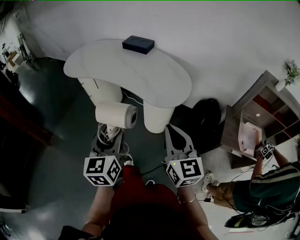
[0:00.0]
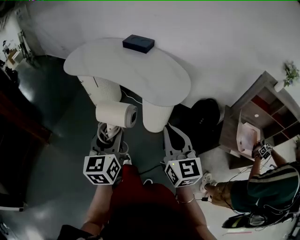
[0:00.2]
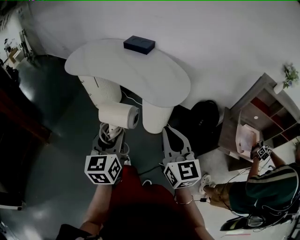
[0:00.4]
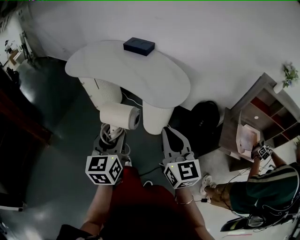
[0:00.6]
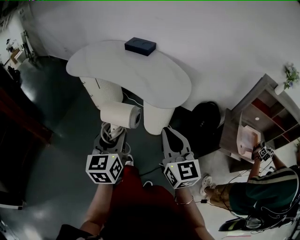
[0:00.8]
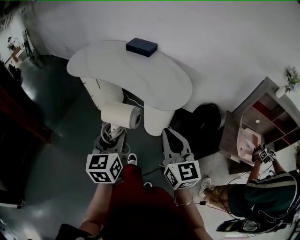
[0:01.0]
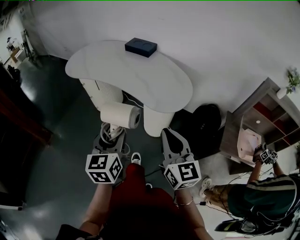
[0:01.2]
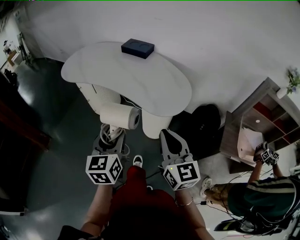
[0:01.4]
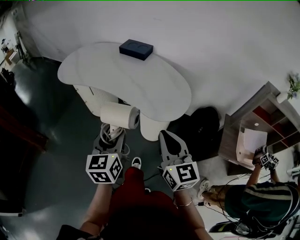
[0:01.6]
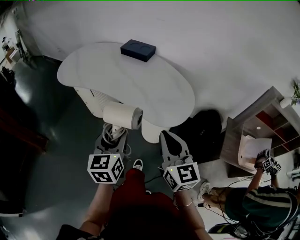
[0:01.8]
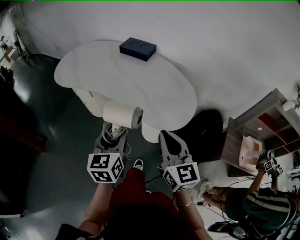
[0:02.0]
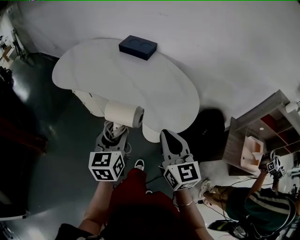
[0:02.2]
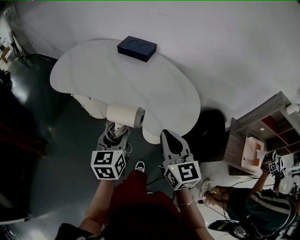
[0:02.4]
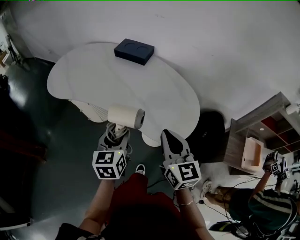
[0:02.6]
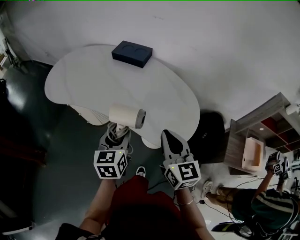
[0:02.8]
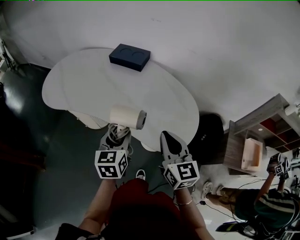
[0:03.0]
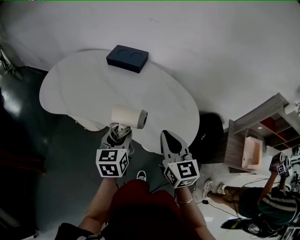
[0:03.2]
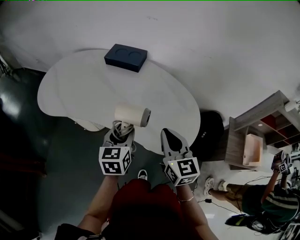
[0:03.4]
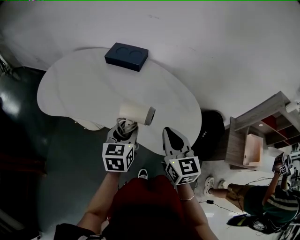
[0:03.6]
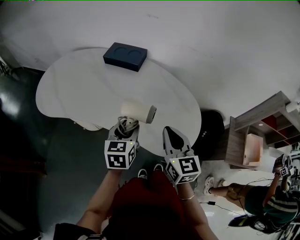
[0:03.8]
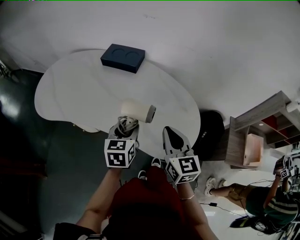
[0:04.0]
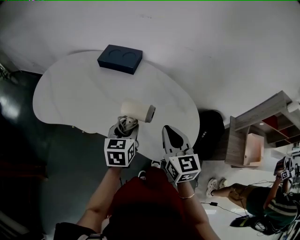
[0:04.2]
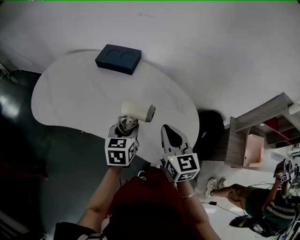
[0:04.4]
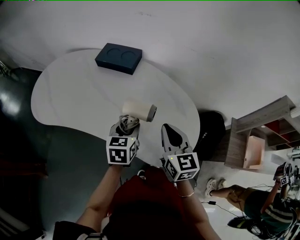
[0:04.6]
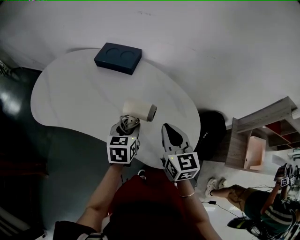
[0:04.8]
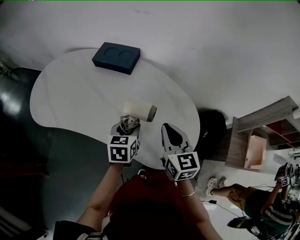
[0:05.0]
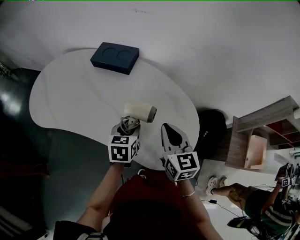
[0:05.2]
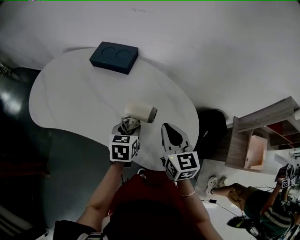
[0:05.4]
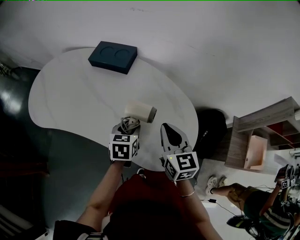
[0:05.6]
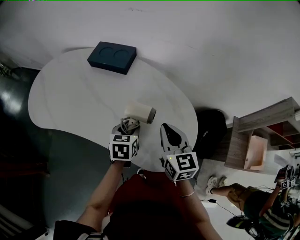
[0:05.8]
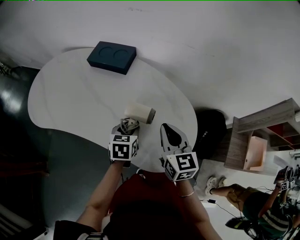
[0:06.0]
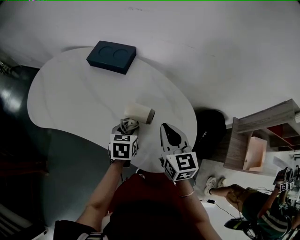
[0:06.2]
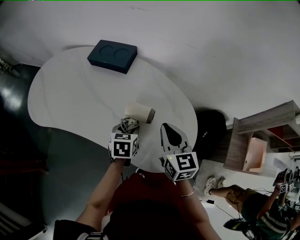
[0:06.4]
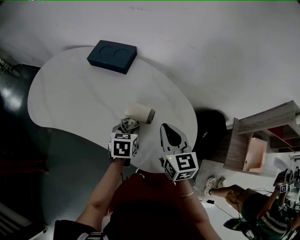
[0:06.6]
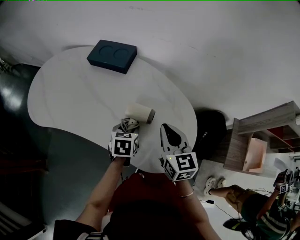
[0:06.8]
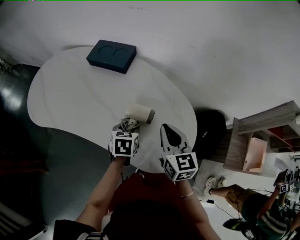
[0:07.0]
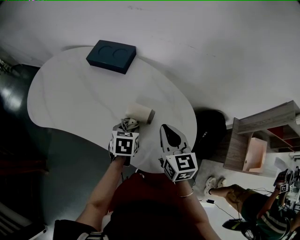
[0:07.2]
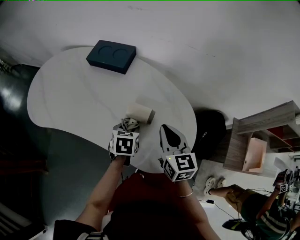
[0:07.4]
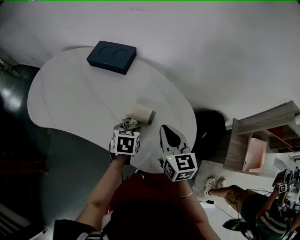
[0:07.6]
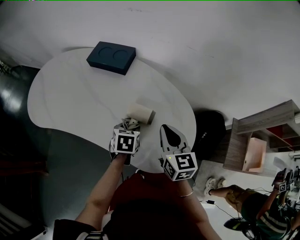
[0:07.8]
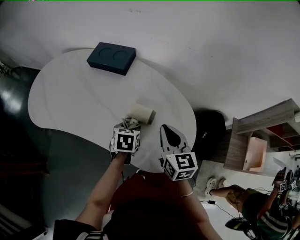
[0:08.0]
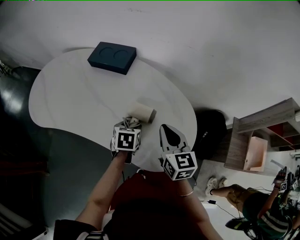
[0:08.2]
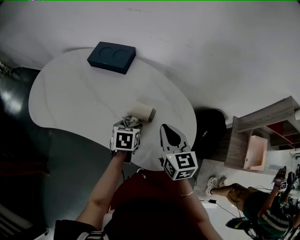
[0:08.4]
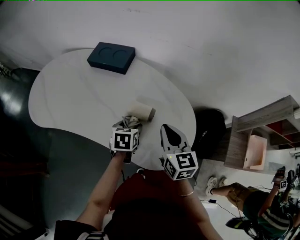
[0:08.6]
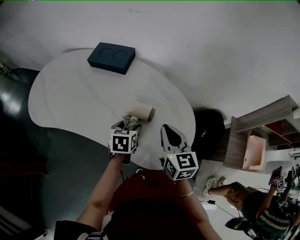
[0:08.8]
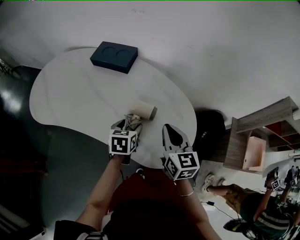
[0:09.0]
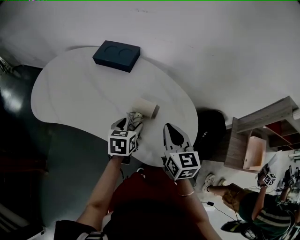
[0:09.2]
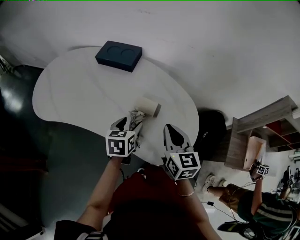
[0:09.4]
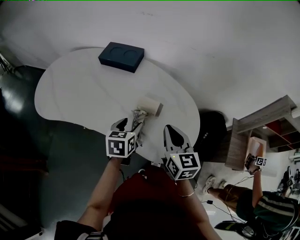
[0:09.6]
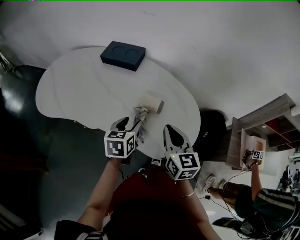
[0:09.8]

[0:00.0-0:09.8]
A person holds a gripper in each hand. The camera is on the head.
0:00.0 to 0:01.4: The left gripper is displaced forward by roughly 5 cm.
0:01.4 to 0:02.8: The grippers both shift forward by approximately 20 cm.
0:02.8 to 0:04.2: The grippers both shift forward by approximately 10 cm.
0:04.2 to 0:05.6: The left gripper shifts approximately 10 cm downward and forward; the right gripper heads forward, covering about 5 cm.
0:05.6 to 0:07.0: The grippers make only small movements.
0:07.0 to 0:08.4: Both grippers stay about where they are.
0:08.4 to 0:09.8: The left gripper heads upward and backward, covering roughly 10 cm. Meanwhile the right gripper goes roughly 5 cm backward.

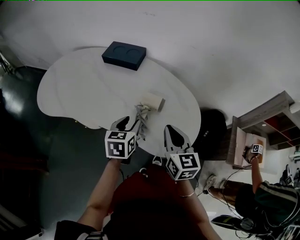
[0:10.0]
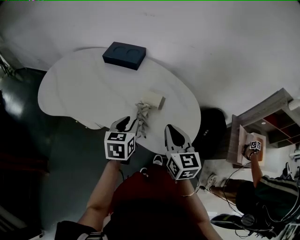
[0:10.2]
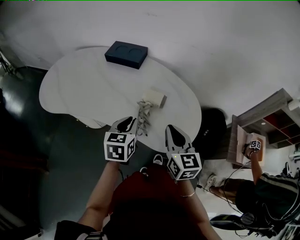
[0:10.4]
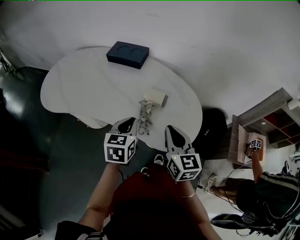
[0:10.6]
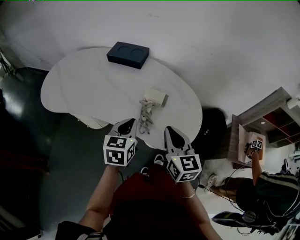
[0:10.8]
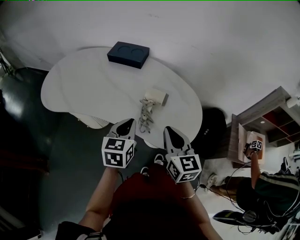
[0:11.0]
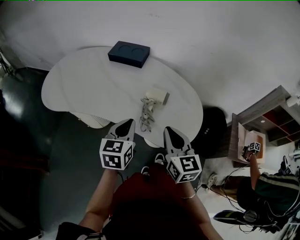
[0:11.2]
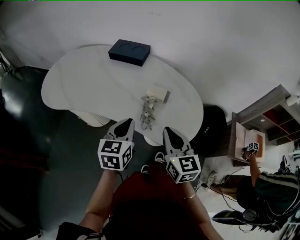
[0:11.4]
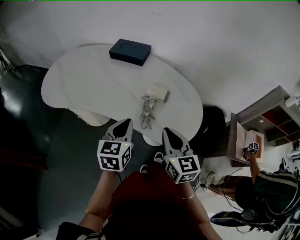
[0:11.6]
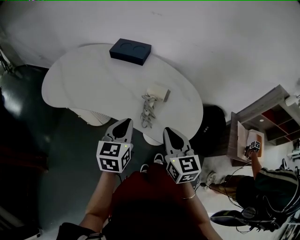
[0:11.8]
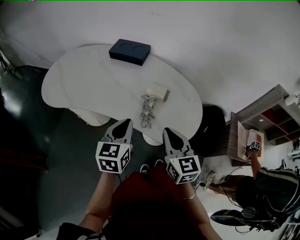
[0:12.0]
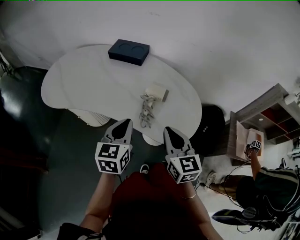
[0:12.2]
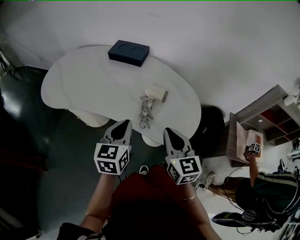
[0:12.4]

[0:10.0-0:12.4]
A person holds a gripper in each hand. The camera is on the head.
0:10.0 to 0:11.2: The left gripper shifts about 10 cm backward and upward, and closes. Meanwhile the right gripper is displaced backward by about 5 cm.
0:11.2 to 0:12.4: There are only small adjustments of the grippers.

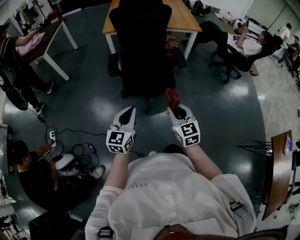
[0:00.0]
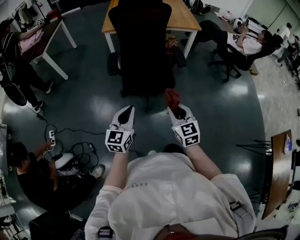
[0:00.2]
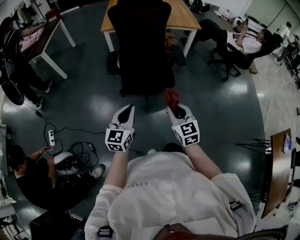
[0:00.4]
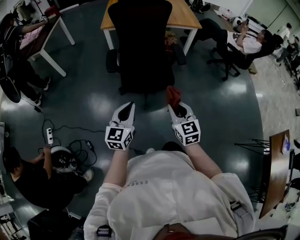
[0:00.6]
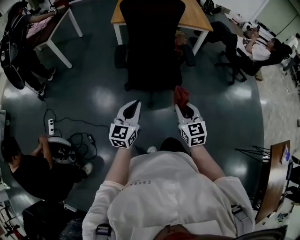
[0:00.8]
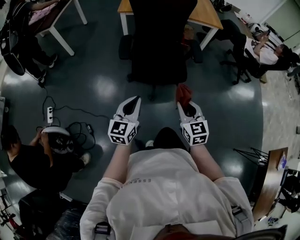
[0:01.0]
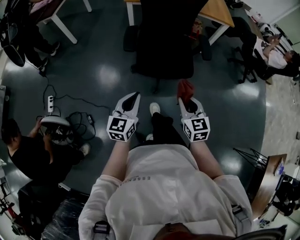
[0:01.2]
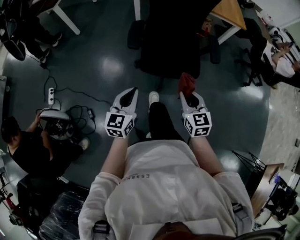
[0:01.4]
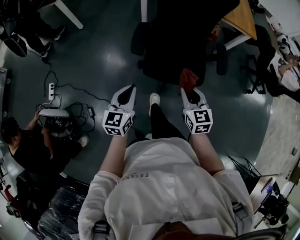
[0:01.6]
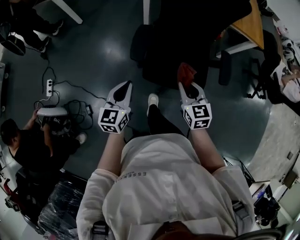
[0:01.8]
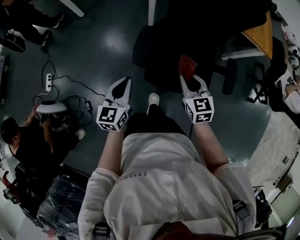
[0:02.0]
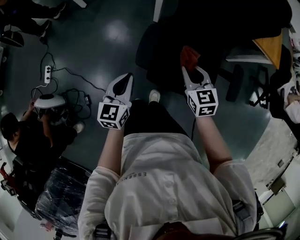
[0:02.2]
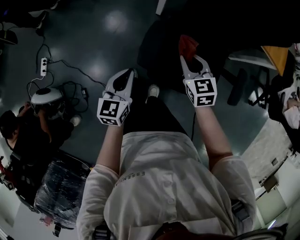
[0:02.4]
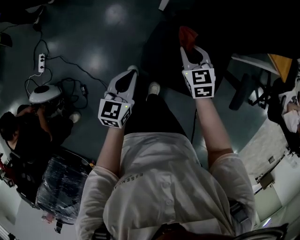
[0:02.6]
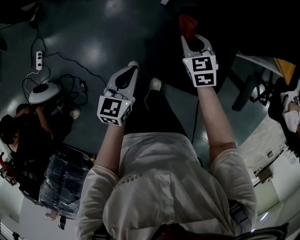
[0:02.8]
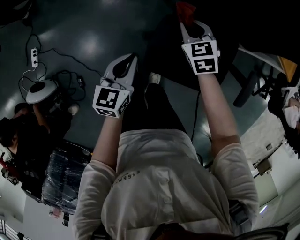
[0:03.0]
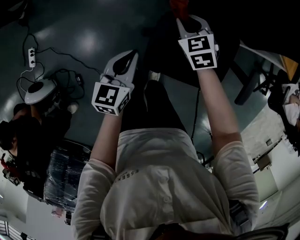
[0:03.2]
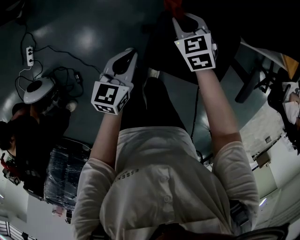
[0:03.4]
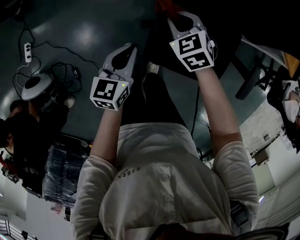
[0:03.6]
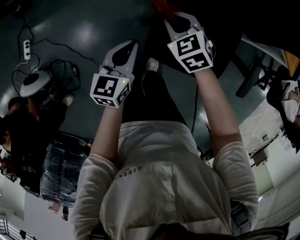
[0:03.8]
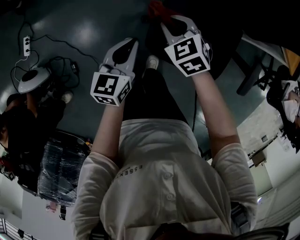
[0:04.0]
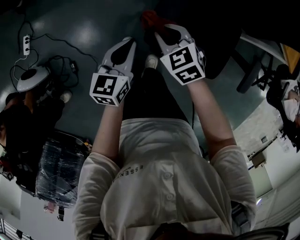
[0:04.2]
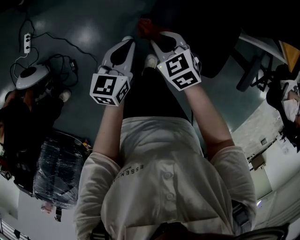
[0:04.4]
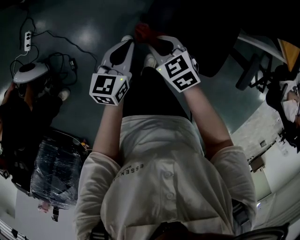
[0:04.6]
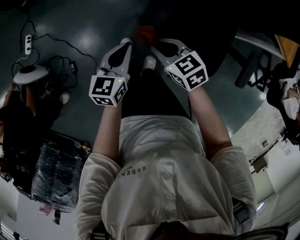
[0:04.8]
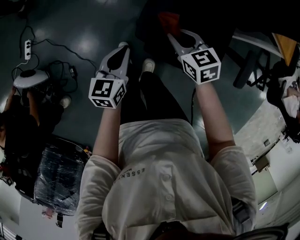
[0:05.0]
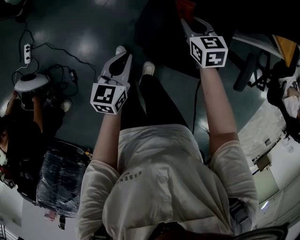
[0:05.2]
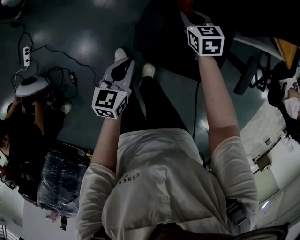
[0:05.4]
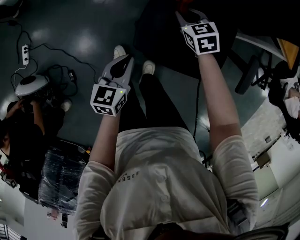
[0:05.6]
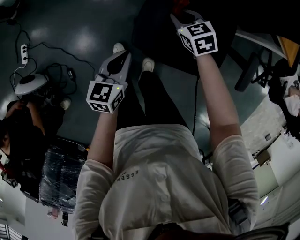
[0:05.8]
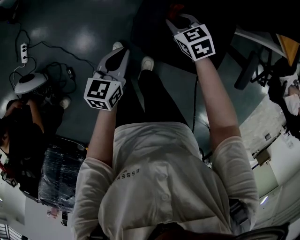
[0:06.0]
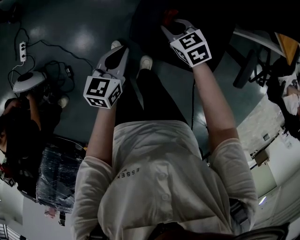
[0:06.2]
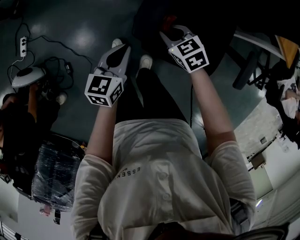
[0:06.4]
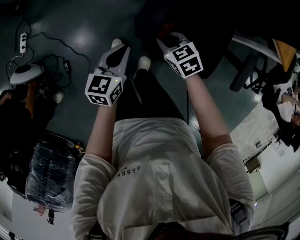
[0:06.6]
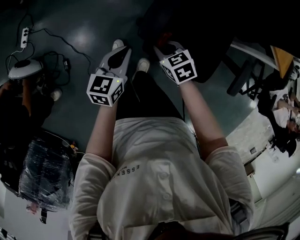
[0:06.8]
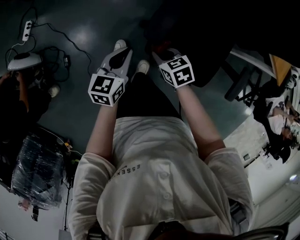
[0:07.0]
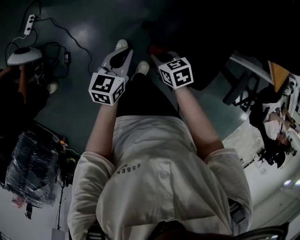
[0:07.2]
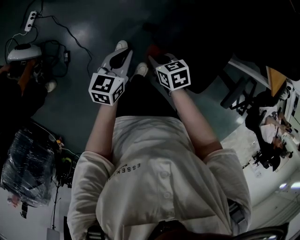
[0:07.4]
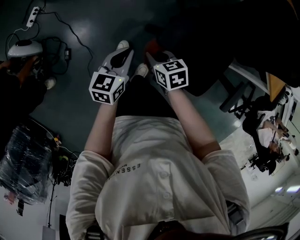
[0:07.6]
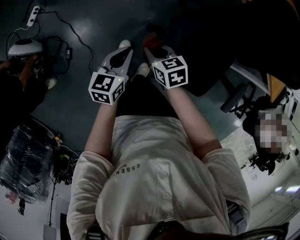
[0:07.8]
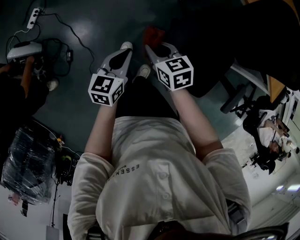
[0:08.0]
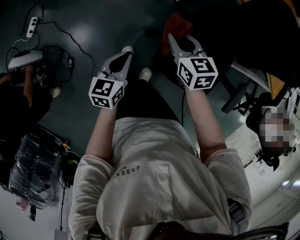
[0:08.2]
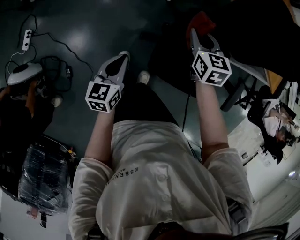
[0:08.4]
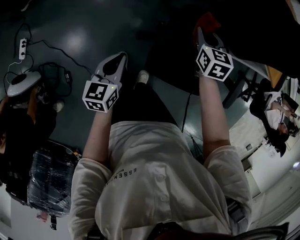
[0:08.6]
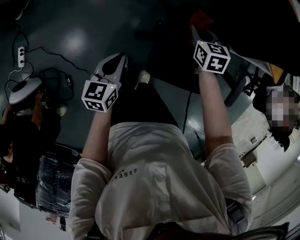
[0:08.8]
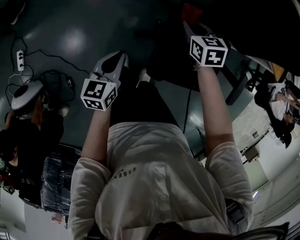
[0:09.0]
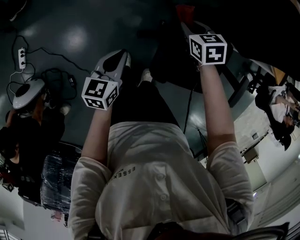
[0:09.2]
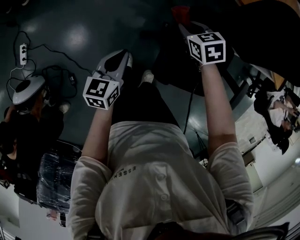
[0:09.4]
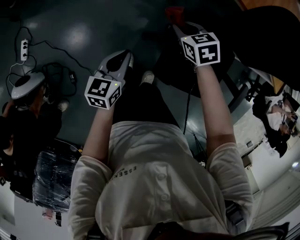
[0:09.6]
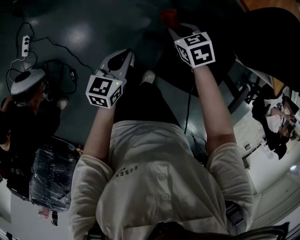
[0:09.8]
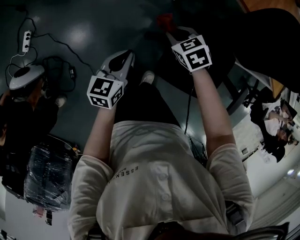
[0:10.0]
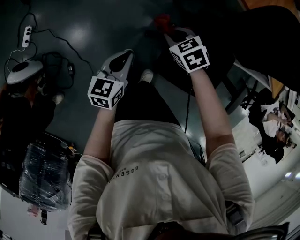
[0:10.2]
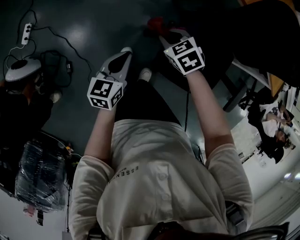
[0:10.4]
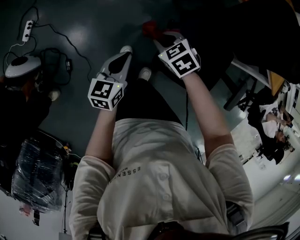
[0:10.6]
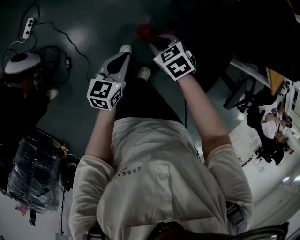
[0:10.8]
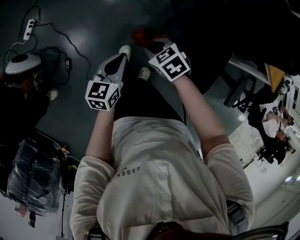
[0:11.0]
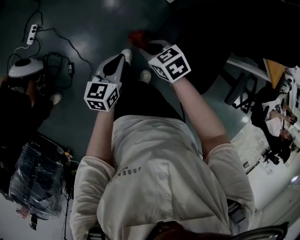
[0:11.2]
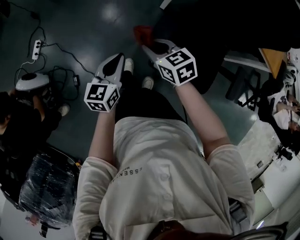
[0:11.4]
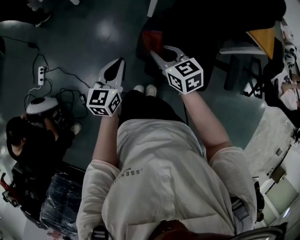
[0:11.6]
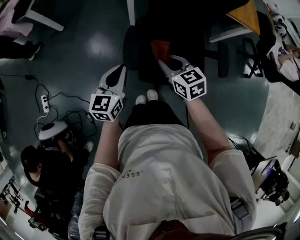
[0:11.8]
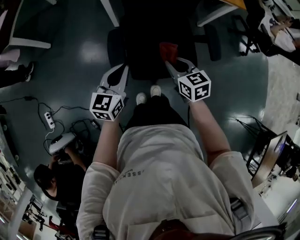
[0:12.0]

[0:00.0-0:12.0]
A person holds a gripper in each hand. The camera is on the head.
0:00.0 to 0:01.6: The right gripper moves forward, some 20 cm; the left gripper travels forward, to the left and downward by approximately 20 cm.
0:01.6 to 0:03.0: The right gripper shifts about 40 cm forward, and swivels approximately 30 degrees; the left gripper heads forward and downward, covering some 30 cm.
0:03.0 to 0:04.4: The right gripper moves backward and to the left, roughly 20 cm, and swivels some 20 degrees, while the left gripper goes about 5 cm backward.
0:04.4 to 0:06.0: The right gripper swings forward and backward, about 20 cm each way, with 2 reversals.
0:06.0 to 0:07.6: The left gripper shifts some 5 cm to the left. Meanwhile the right gripper moves to the left and backward, about 20 cm.
0:07.6 to 0:09.0: The left gripper shifts by approximately 15 cm; the right gripper travels upward and back again, about 10 cm each way, and rotates about 30 degrees.
0:09.0 to 0:10.4: The left gripper moves approximately 10 cm. The right gripper ends up roughly 20 cm from where it was, and rotates approximately 40 degrees.
0:10.4 to 0:12.0: The right gripper changes place by roughly 30 cm, and changes its angle by roughly 60 degrees, while the left gripper shifts by roughly 25 cm, and rotates approximately 40 degrees.
